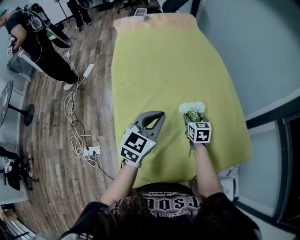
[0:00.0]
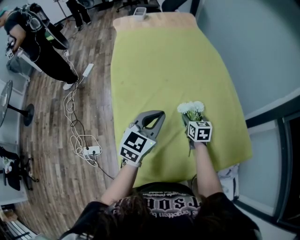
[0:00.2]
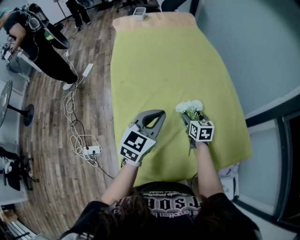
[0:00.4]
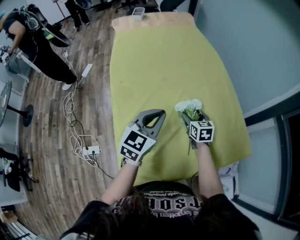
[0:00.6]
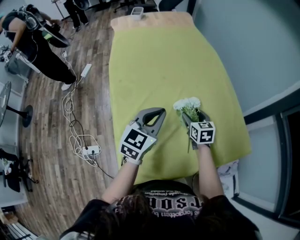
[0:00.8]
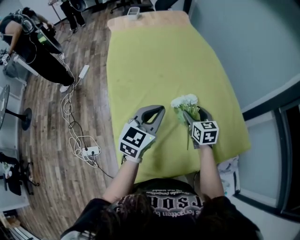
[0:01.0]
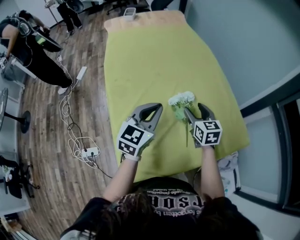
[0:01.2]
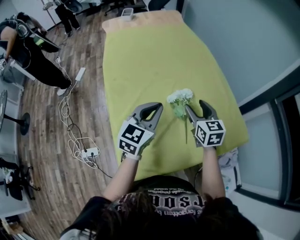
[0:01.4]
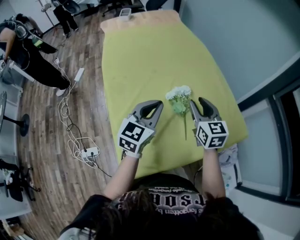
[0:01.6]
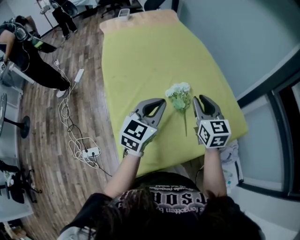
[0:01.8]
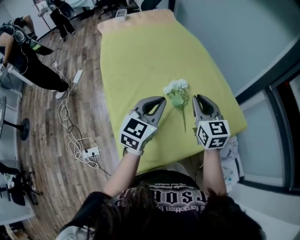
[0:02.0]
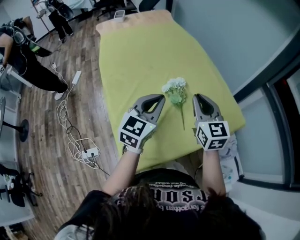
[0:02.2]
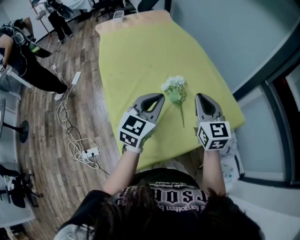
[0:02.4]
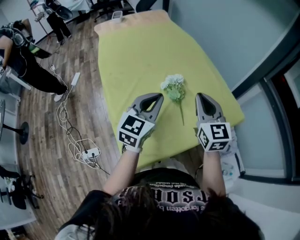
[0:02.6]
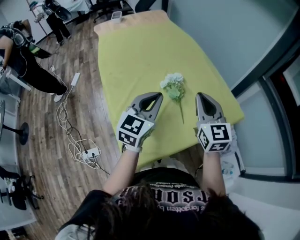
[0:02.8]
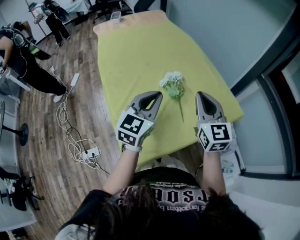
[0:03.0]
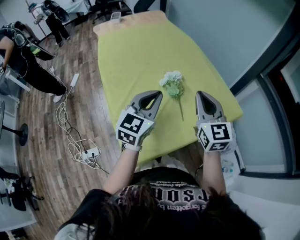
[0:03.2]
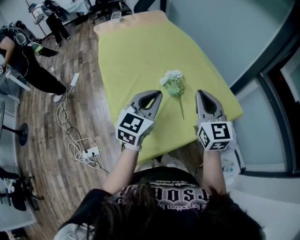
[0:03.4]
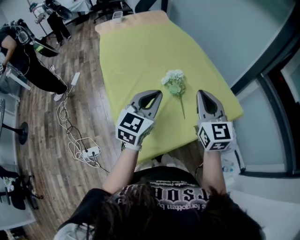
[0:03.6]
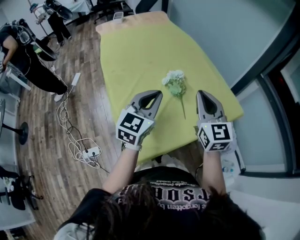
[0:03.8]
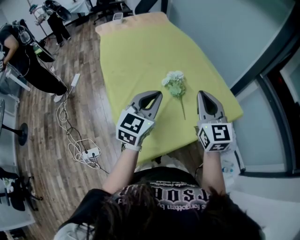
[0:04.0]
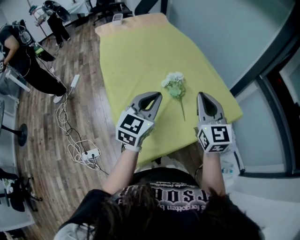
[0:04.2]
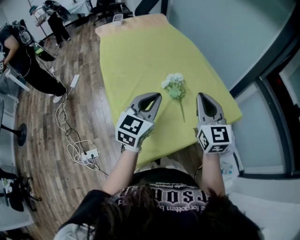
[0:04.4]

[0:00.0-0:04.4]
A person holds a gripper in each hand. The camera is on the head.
0:00.0 to 0:01.4: The right gripper is displaced upward and backward by about 15 cm, and opens.
0:01.4 to 0:03.0: The right gripper goes some 15 cm backward and upward, changes its angle by some 20 degrees, and closes. The left gripper heads backward, covering some 5 cm.
0:03.0 to 0:04.4: The grippers stay close to where they were, moving slightly.

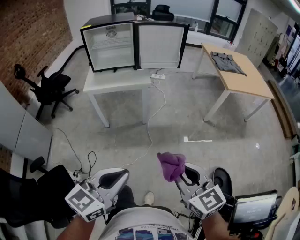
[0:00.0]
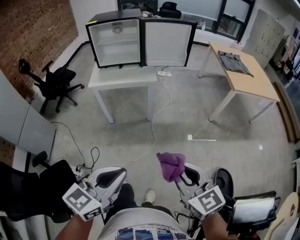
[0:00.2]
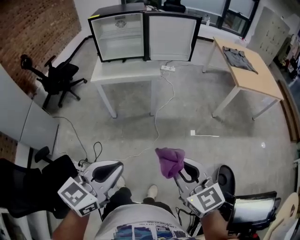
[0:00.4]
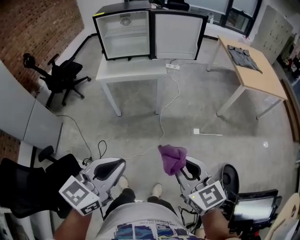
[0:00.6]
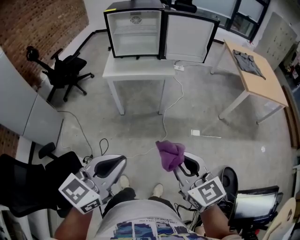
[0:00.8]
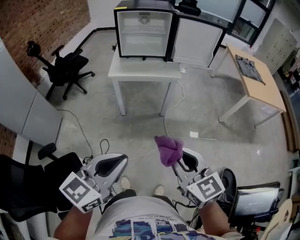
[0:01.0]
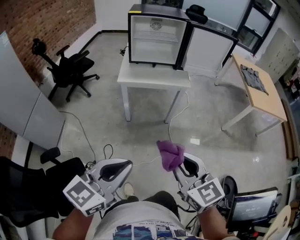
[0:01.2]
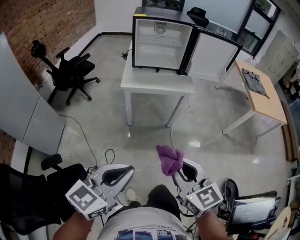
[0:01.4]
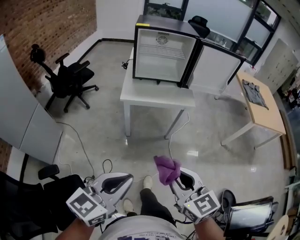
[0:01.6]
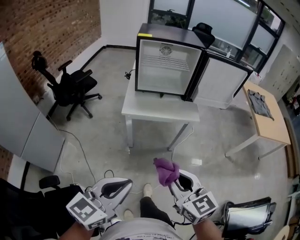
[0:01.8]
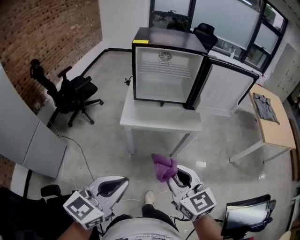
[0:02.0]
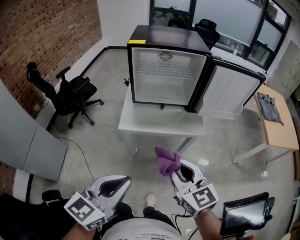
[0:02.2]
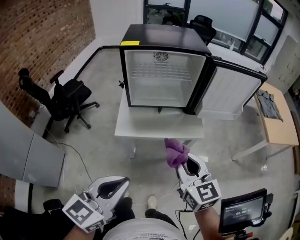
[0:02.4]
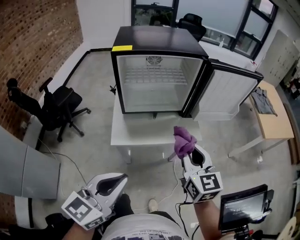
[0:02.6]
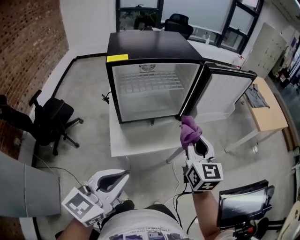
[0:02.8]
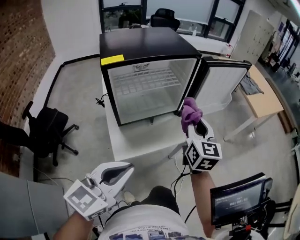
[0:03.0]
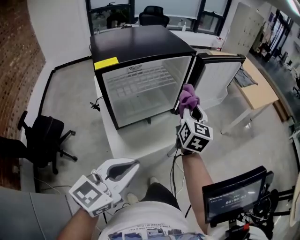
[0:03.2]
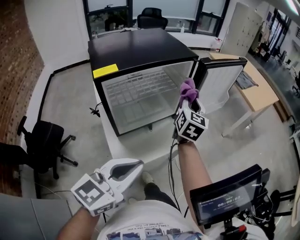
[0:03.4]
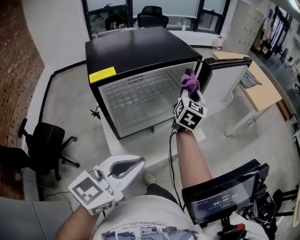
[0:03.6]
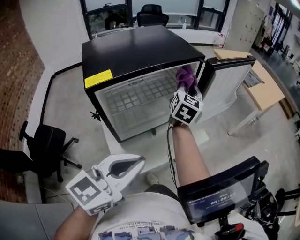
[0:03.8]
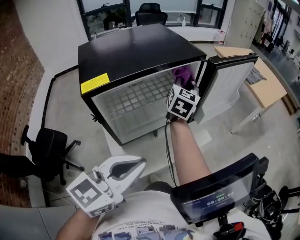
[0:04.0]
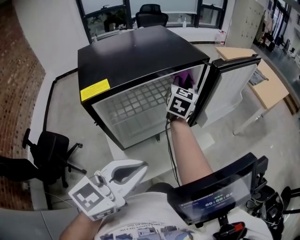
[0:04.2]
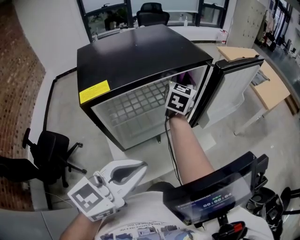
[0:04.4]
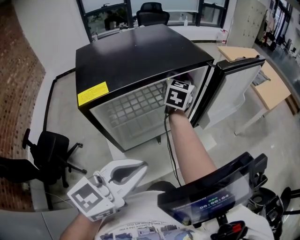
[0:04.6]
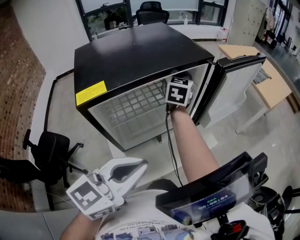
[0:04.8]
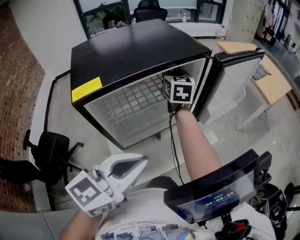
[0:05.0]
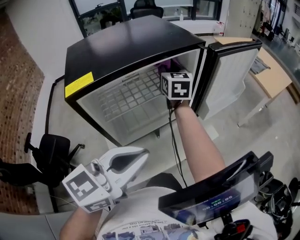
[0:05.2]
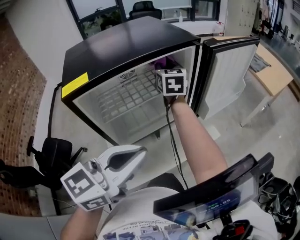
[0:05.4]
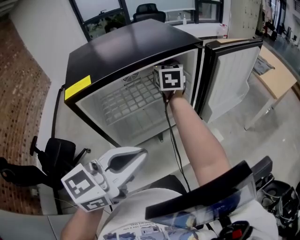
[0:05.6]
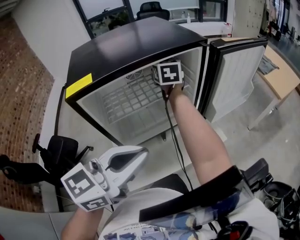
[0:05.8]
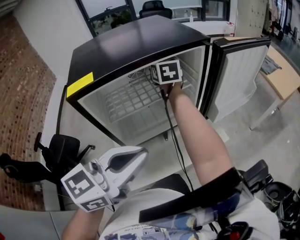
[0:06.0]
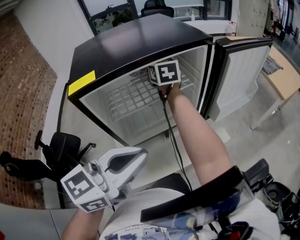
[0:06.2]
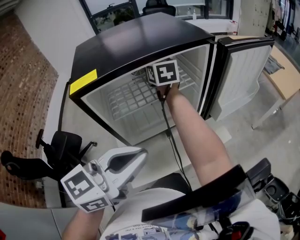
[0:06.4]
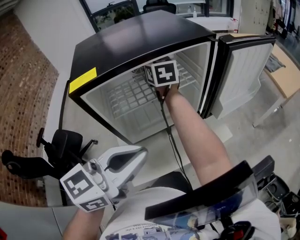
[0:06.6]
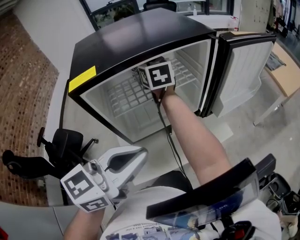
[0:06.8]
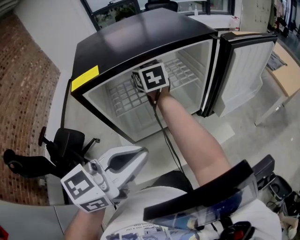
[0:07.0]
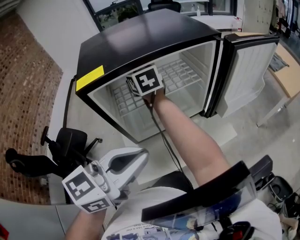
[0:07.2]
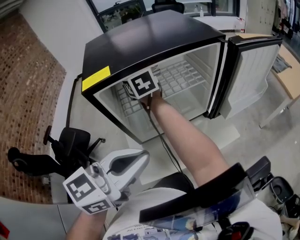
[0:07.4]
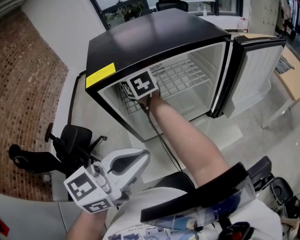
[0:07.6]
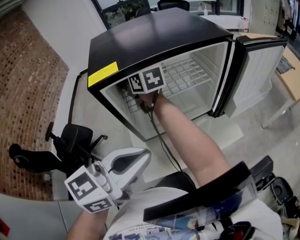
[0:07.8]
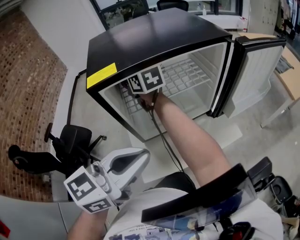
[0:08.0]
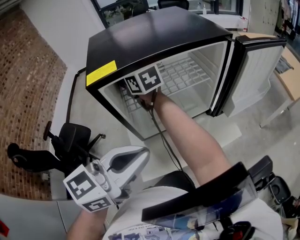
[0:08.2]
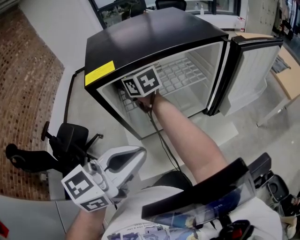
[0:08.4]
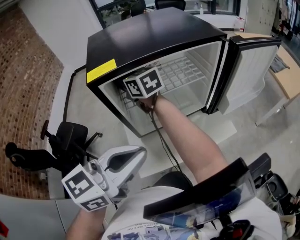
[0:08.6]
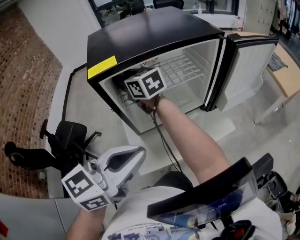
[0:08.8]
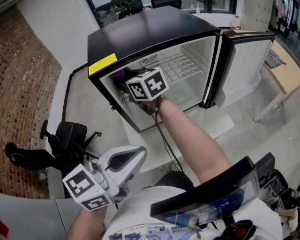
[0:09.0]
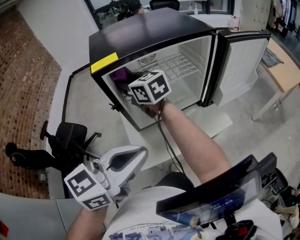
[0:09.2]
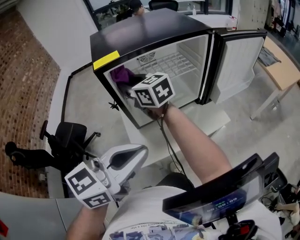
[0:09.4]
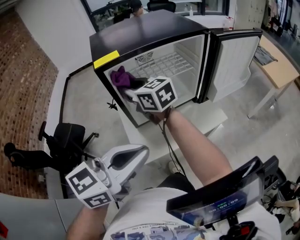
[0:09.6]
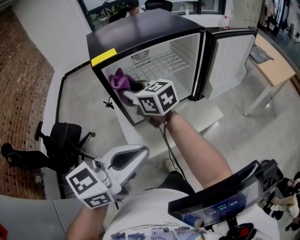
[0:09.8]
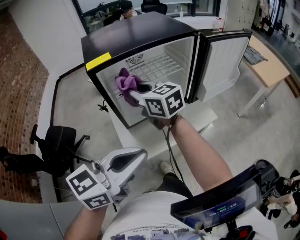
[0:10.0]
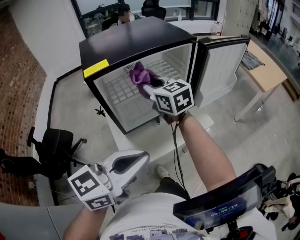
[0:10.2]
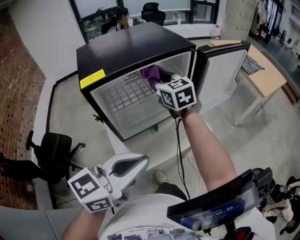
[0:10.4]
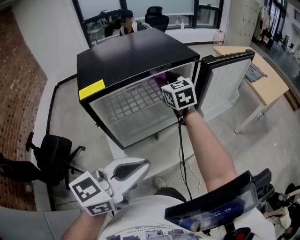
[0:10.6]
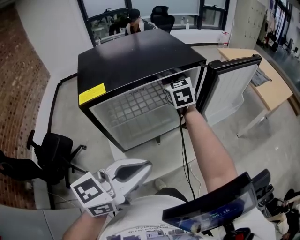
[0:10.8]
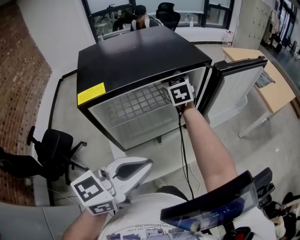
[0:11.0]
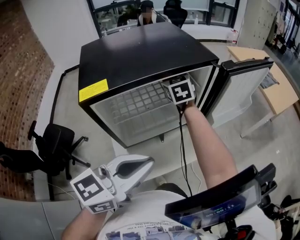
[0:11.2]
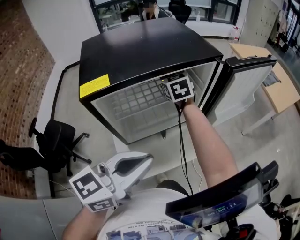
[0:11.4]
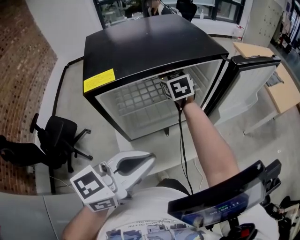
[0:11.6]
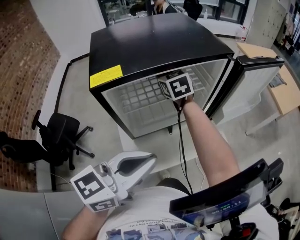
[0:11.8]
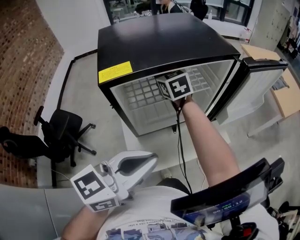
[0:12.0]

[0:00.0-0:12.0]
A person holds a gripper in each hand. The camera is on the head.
0:00.0 to 0:01.6: The two grippers go about 30 cm to the left and forward.
0:01.6 to 0:03.0: Both grippers are carried about 40 cm. The right gripper changes its angle by approximately 50 degrees. Meanwhile the left gripper turns by roughly 20 degrees.
0:03.0 to 0:04.4: The left gripper heads forward and to the left, covering some 15 cm. The right gripper heads forward and to the left, covering some 30 cm.
0:04.4 to 0:06.0: The right gripper is displaced to the left by about 10 cm, and changes its angle by approximately 30 degrees.
0:06.0 to 0:07.6: The right gripper moves to the left and backward, roughly 20 cm, and changes its angle by approximately 20 degrees.
0:07.6 to 0:09.0: The right gripper heads backward, covering some 10 cm.
0:09.0 to 0:10.4: The left gripper ends up roughly 5 cm from where it was. The right gripper moves to the right, approximately 20 cm, and rotates approximately 30 degrees.
0:10.4 to 0:12.0: The right gripper shifts some 15 cm to the left and downward; the left gripper moves roughly 5 cm.

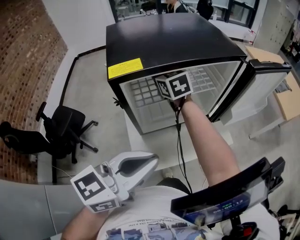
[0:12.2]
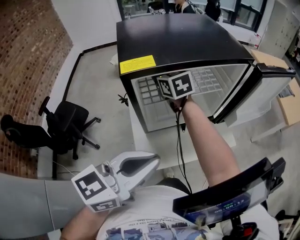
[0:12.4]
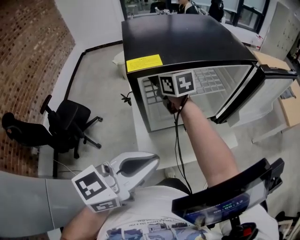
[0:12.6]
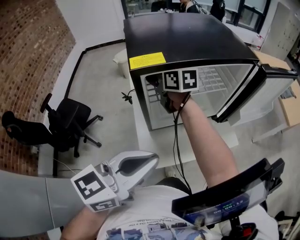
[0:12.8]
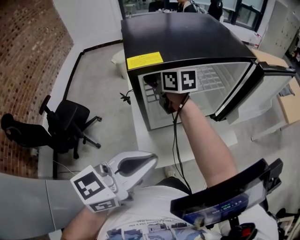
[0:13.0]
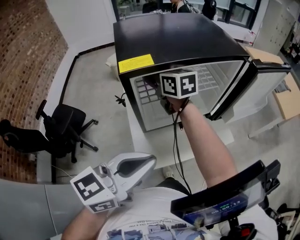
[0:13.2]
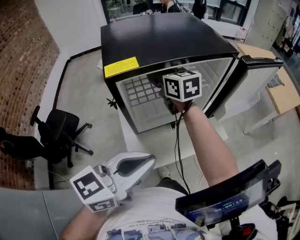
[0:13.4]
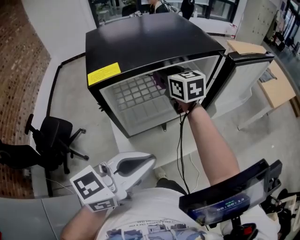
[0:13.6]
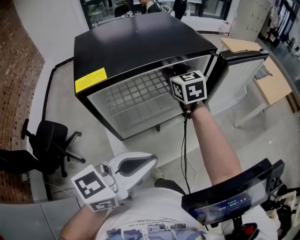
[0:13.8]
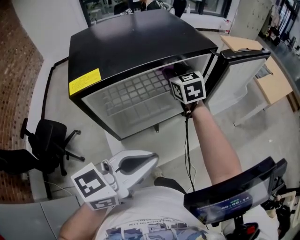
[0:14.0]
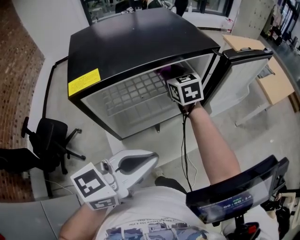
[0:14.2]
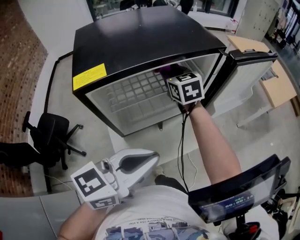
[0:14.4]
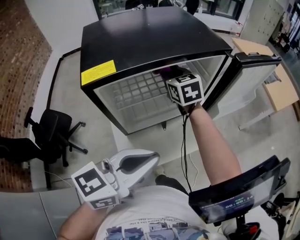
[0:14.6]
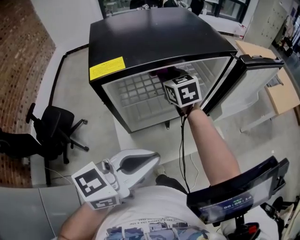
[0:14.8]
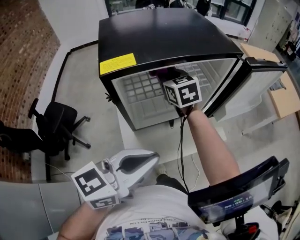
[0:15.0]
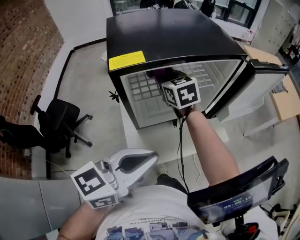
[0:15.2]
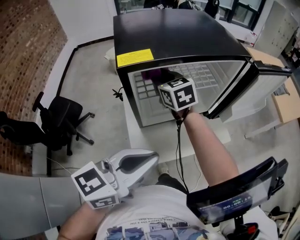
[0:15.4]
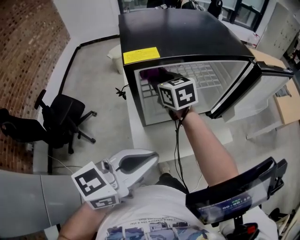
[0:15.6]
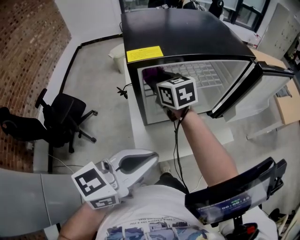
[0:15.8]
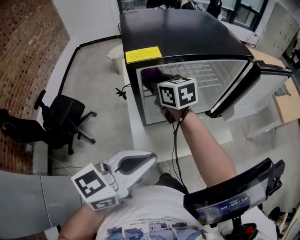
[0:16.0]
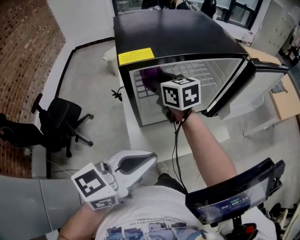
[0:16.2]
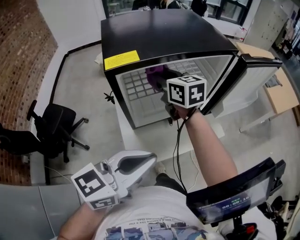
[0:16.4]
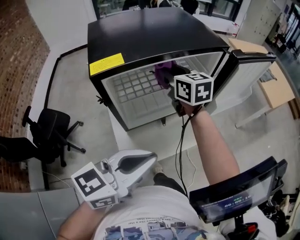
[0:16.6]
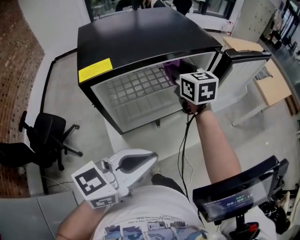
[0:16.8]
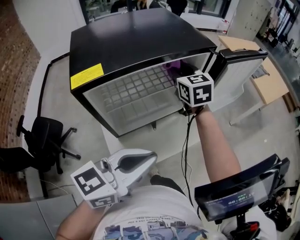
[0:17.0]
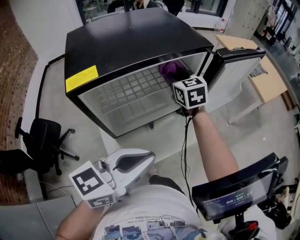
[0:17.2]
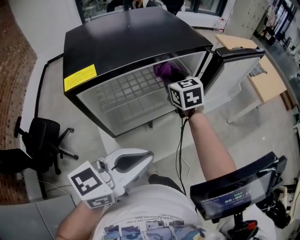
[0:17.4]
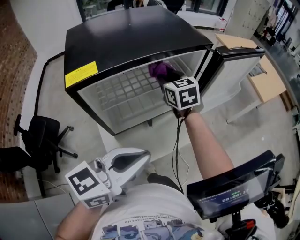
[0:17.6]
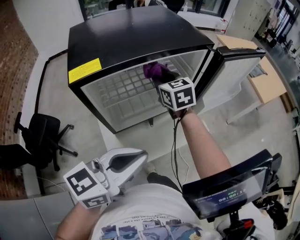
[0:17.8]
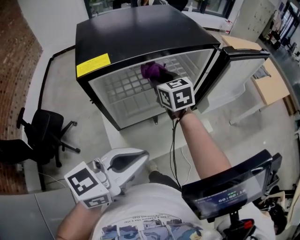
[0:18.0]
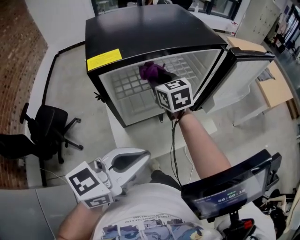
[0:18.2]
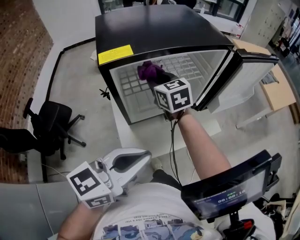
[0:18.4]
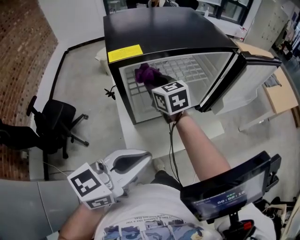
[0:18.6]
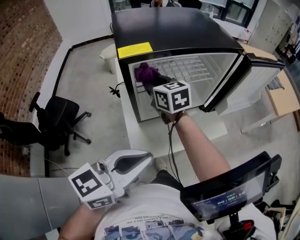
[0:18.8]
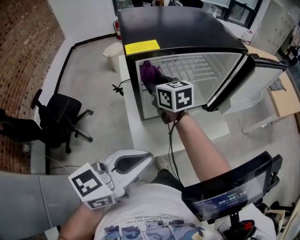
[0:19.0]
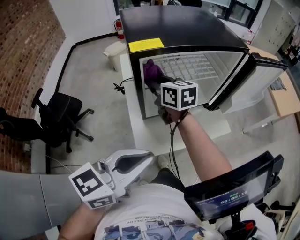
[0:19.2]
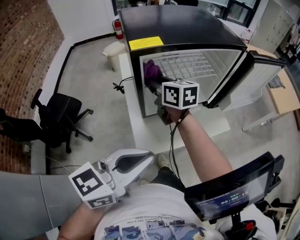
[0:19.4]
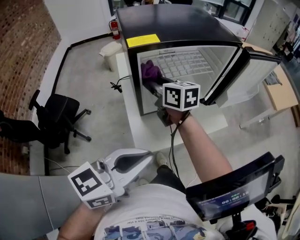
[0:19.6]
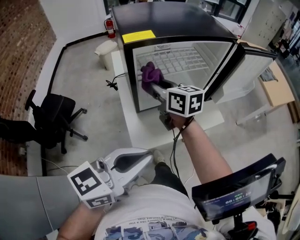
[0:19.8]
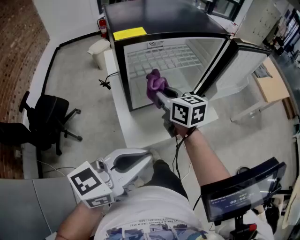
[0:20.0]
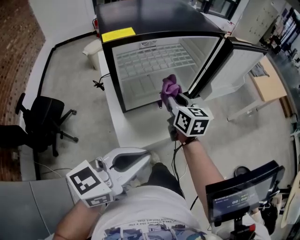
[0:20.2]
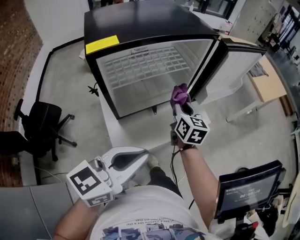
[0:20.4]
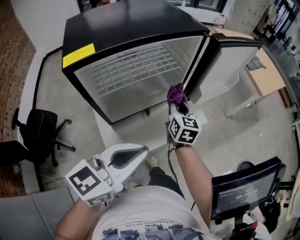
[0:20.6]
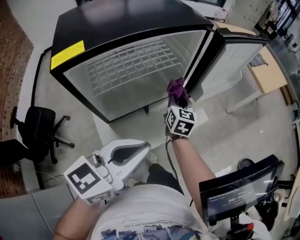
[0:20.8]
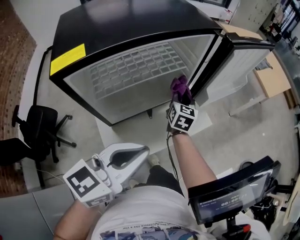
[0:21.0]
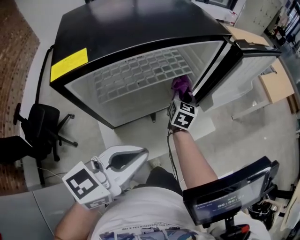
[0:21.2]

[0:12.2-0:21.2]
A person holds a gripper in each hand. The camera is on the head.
0:12.2 to 0:13.8: The right gripper is displaced to the right by approximately 15 cm. The left gripper travels to the right by approximately 5 cm.
0:13.8 to 0:15.2: The left gripper moves to the left, about 5 cm. The right gripper shifts about 15 cm to the left and backward.
0:15.2 to 0:16.6: The right gripper is displaced to the right by some 10 cm.
0:16.6 to 0:18.2: The right gripper heads downward, covering about 5 cm, and moves some 10 cm to the right and comes back.
0:18.2 to 0:19.8: The left gripper travels backward by some 10 cm, while the right gripper is displaced backward and to the left by about 15 cm, and swivels roughly 30 degrees.
0:19.8 to 0:21.2: The right gripper ends up about 30 cm from where it was, and swivels approximately 50 degrees; the left gripper changes place by some 15 cm.
